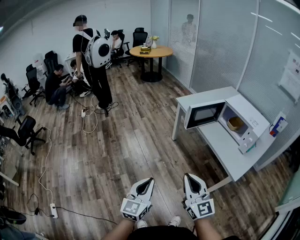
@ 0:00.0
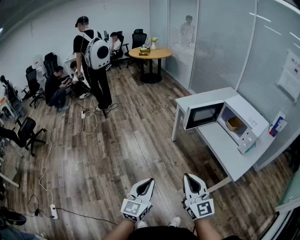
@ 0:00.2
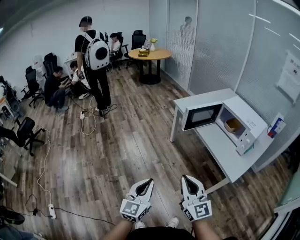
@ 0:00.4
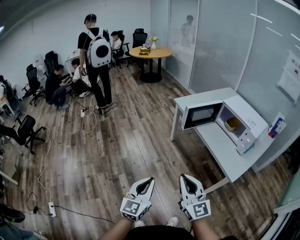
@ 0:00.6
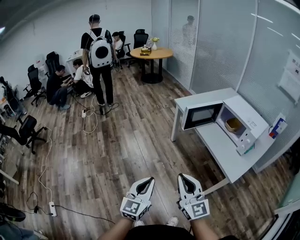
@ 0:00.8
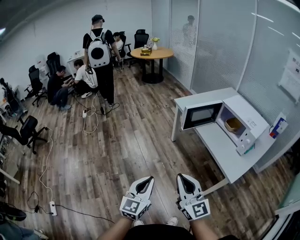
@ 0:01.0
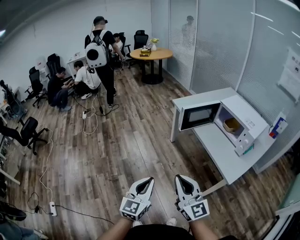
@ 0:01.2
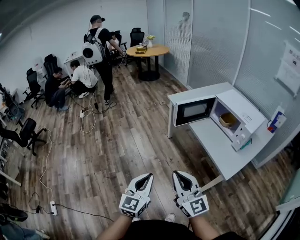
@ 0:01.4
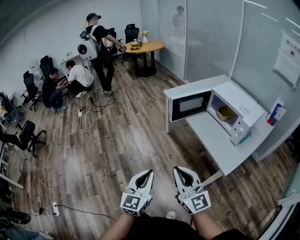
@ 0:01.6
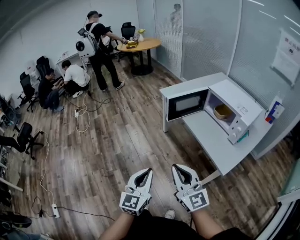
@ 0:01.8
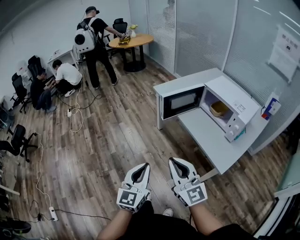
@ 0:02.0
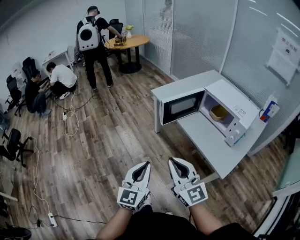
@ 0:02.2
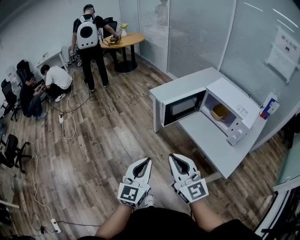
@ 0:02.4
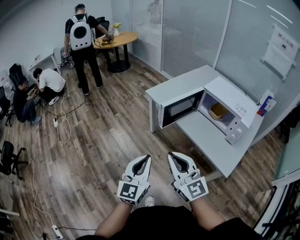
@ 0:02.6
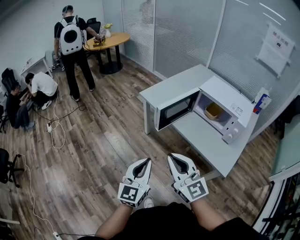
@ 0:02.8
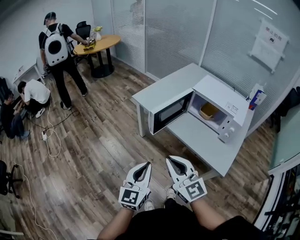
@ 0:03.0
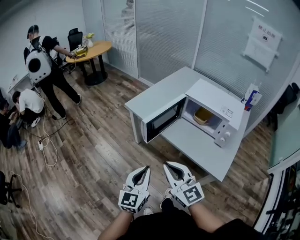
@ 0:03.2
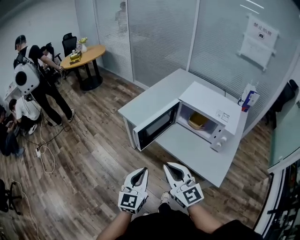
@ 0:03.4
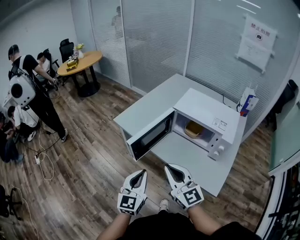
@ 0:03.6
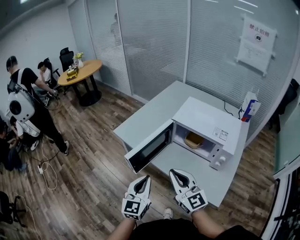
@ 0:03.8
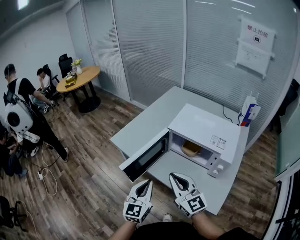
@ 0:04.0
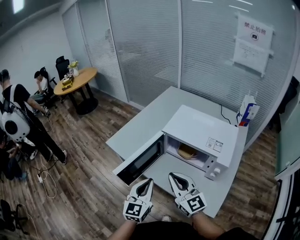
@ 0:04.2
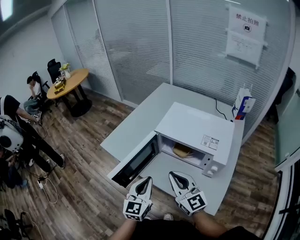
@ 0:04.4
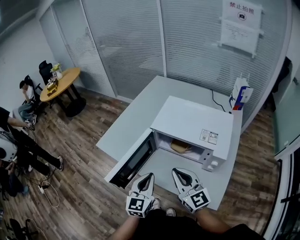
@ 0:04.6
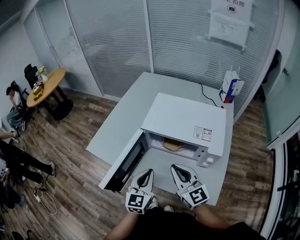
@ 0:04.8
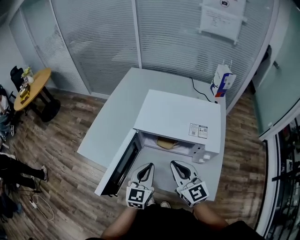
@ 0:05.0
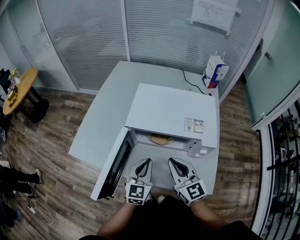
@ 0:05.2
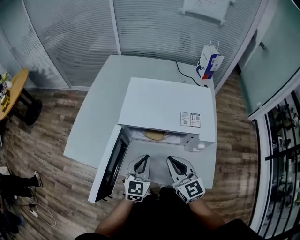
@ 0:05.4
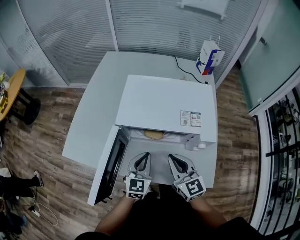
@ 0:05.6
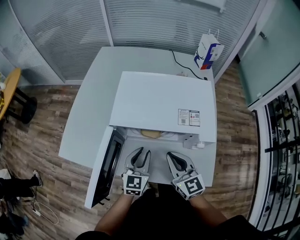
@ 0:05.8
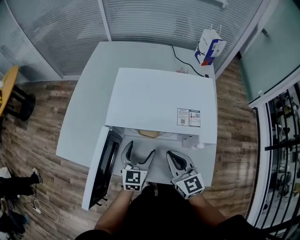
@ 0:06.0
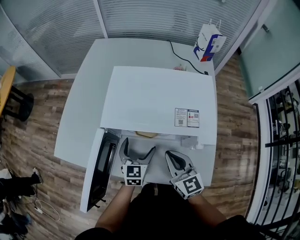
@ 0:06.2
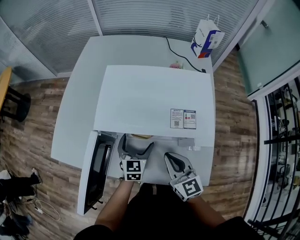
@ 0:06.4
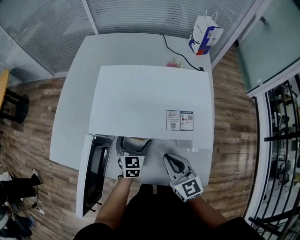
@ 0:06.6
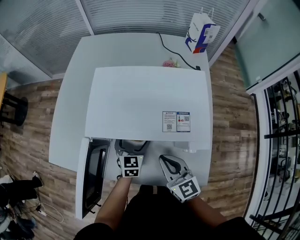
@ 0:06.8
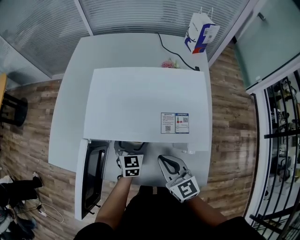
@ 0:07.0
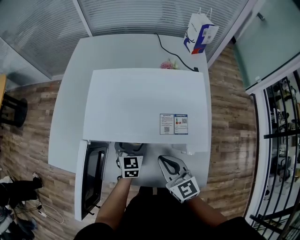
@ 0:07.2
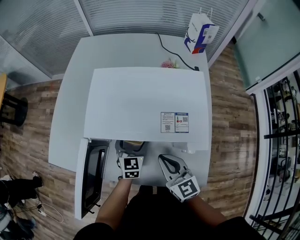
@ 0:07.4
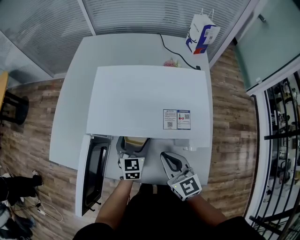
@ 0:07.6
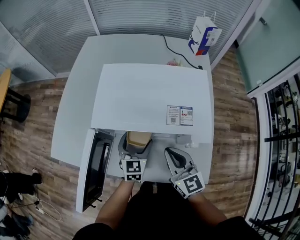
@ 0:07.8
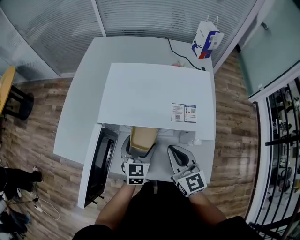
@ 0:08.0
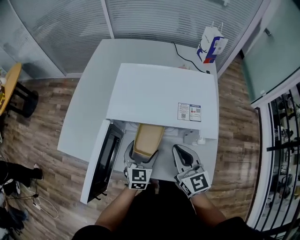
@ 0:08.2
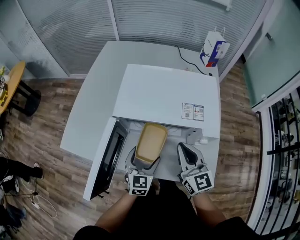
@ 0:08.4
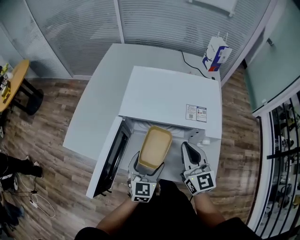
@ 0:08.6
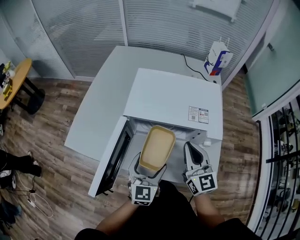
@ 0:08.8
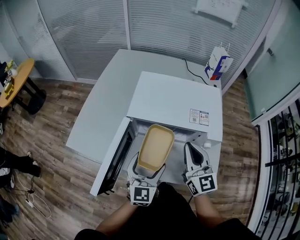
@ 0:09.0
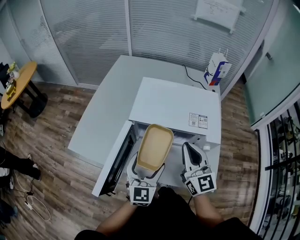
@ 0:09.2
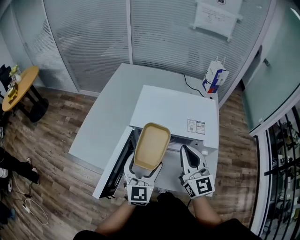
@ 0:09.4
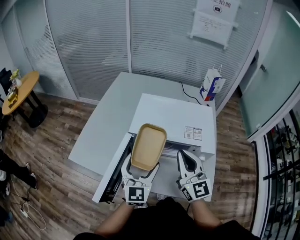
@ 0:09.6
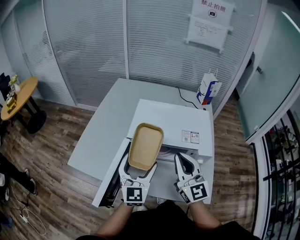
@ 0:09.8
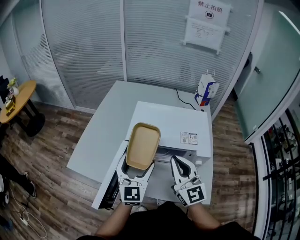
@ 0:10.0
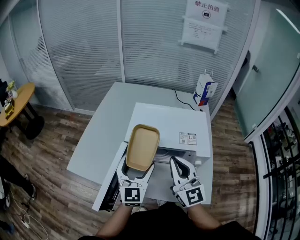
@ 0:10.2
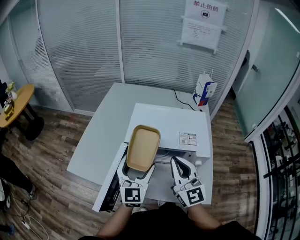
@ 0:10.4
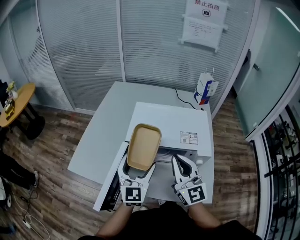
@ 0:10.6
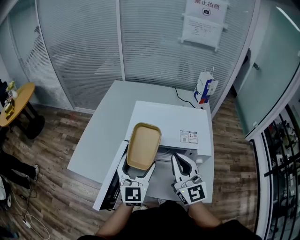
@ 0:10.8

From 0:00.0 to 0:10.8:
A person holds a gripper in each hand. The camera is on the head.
From 0:00.0 to 0:01.6: The right gripper is displaced to the right by approximately 10 cm. The left gripper travels to the right by some 10 cm.
From 0:01.6 to 0:03.0: The grippers both shift forward by approximately 20 cm.
From 0:03.0 to 0:04.6: The right gripper heads to the right and forward, covering some 35 cm, while the left gripper moves forward and to the right, some 35 cm.
From 0:04.6 to 0:06.2: The left gripper shifts roughly 25 cm forward, downward and to the right, rotates approximately 20 degrees, and opens up. Meanwhile the right gripper goes about 15 cm downward, forward and to the right, and turns by roughly 30 degrees.
From 0:07.8 to 0:09.2: The right gripper moves upward, approximately 10 cm; the left gripper moves upward, backward and to the left, roughly 20 cm.
From 0:09.2 to 0:10.8: The left gripper travels upward and forward by roughly 10 cm, while the right gripper is displaced upward by about 5 cm.

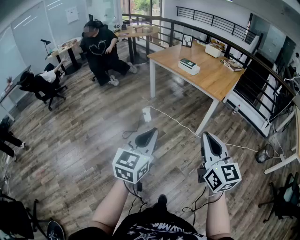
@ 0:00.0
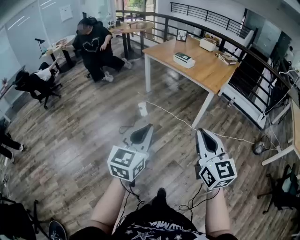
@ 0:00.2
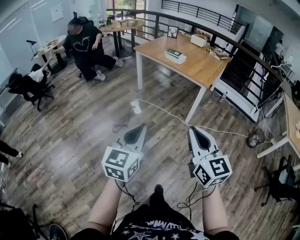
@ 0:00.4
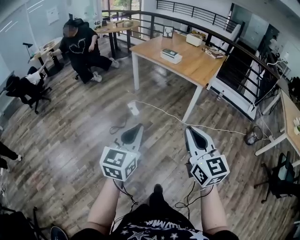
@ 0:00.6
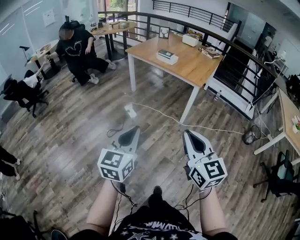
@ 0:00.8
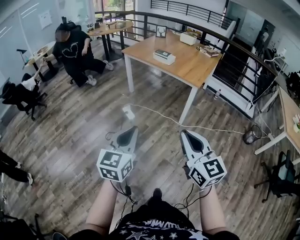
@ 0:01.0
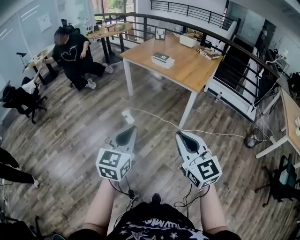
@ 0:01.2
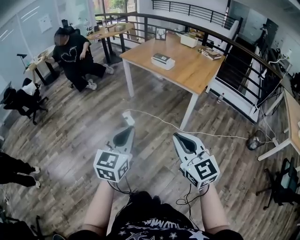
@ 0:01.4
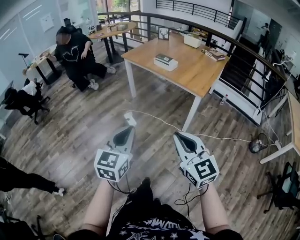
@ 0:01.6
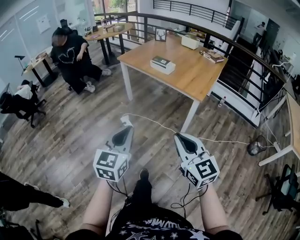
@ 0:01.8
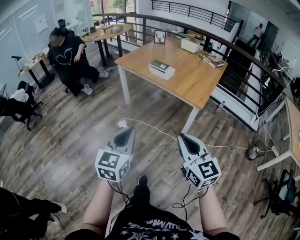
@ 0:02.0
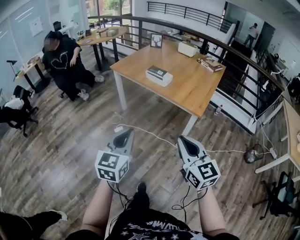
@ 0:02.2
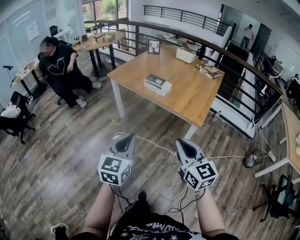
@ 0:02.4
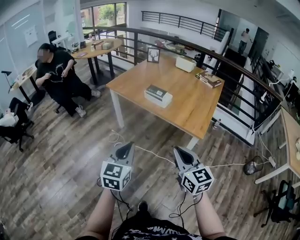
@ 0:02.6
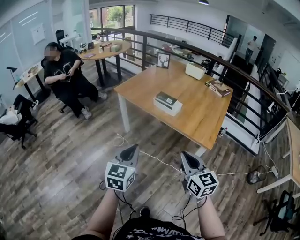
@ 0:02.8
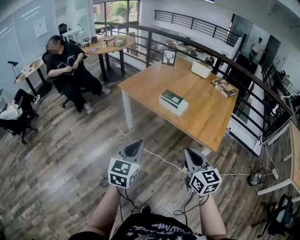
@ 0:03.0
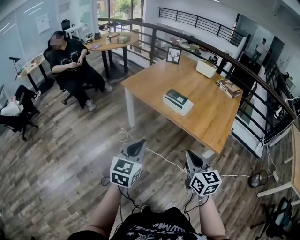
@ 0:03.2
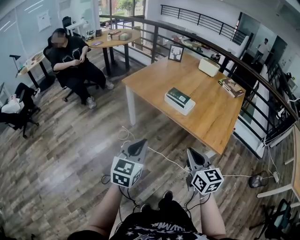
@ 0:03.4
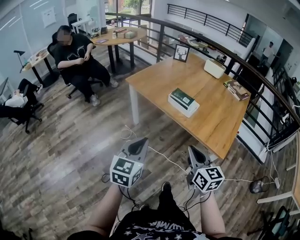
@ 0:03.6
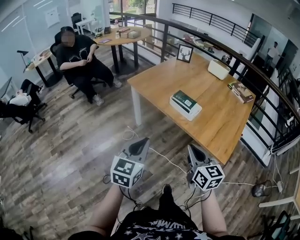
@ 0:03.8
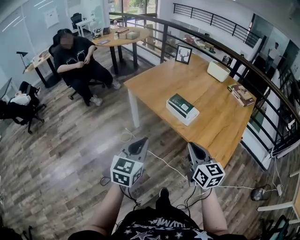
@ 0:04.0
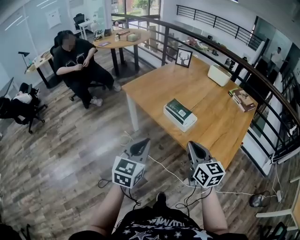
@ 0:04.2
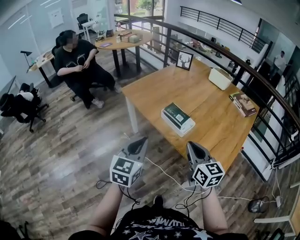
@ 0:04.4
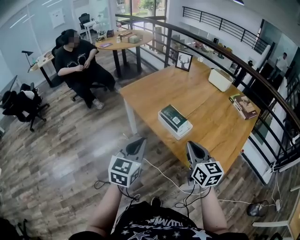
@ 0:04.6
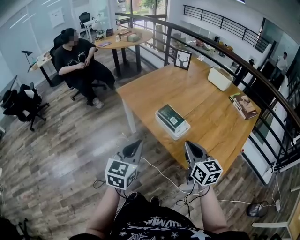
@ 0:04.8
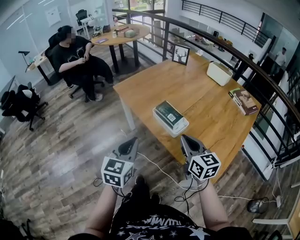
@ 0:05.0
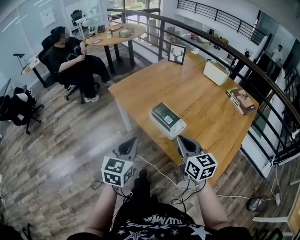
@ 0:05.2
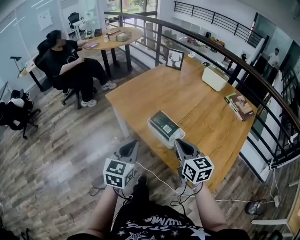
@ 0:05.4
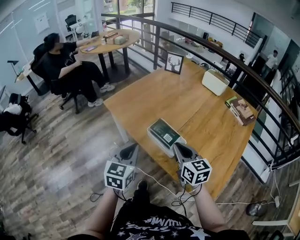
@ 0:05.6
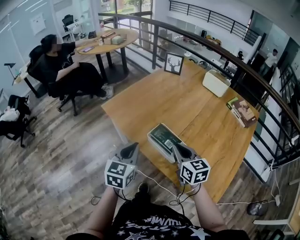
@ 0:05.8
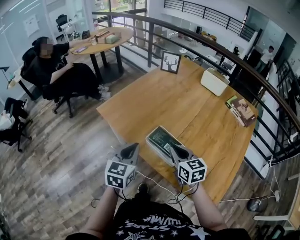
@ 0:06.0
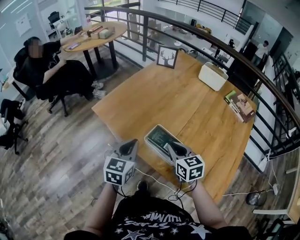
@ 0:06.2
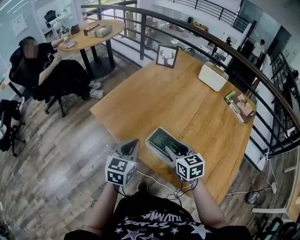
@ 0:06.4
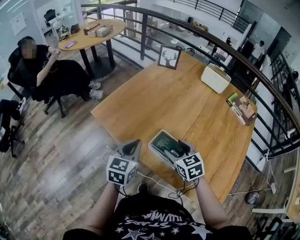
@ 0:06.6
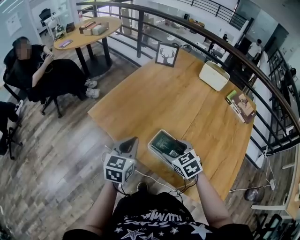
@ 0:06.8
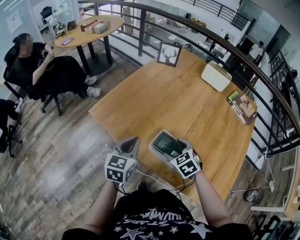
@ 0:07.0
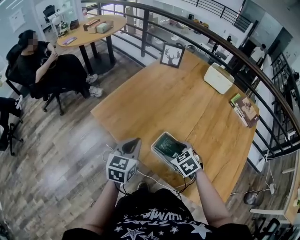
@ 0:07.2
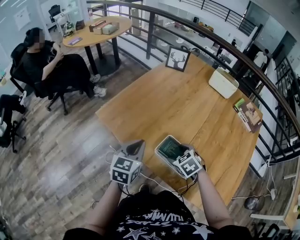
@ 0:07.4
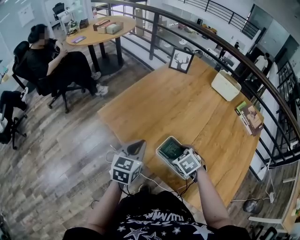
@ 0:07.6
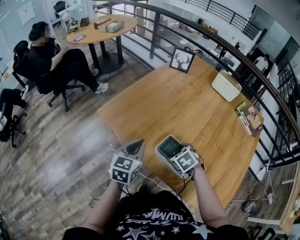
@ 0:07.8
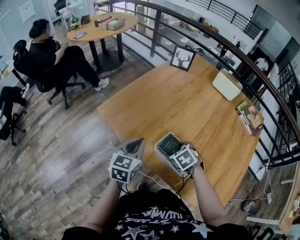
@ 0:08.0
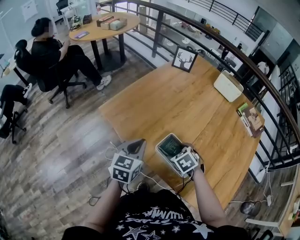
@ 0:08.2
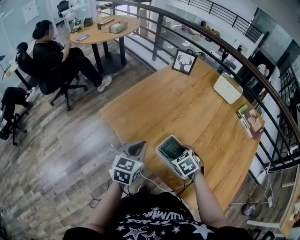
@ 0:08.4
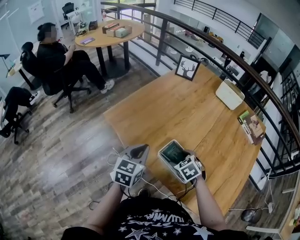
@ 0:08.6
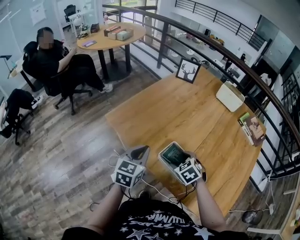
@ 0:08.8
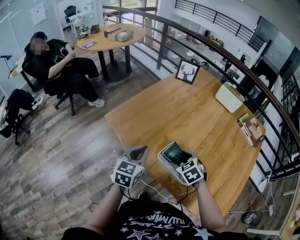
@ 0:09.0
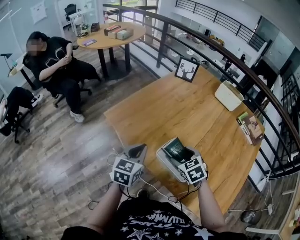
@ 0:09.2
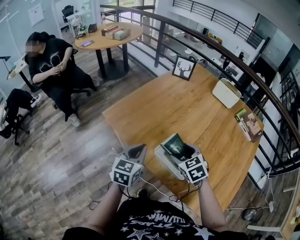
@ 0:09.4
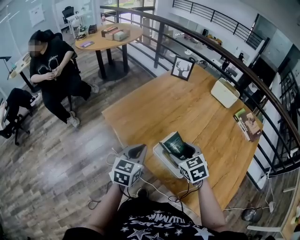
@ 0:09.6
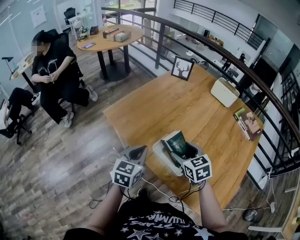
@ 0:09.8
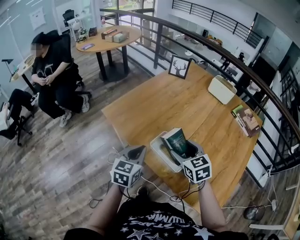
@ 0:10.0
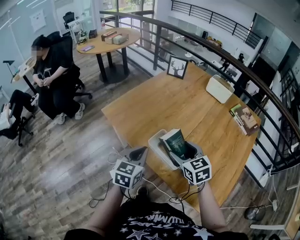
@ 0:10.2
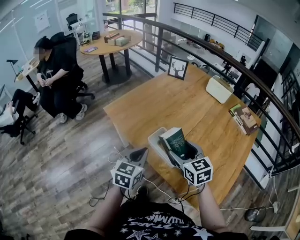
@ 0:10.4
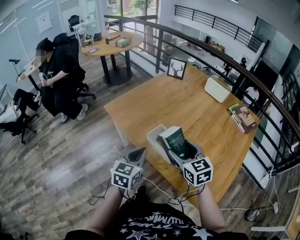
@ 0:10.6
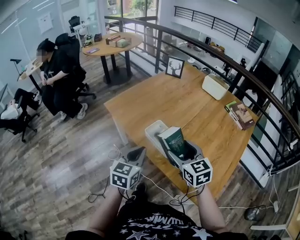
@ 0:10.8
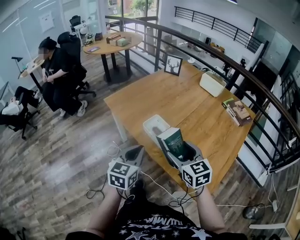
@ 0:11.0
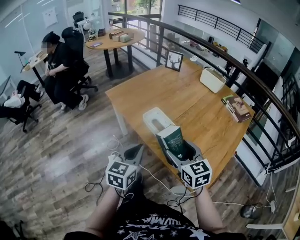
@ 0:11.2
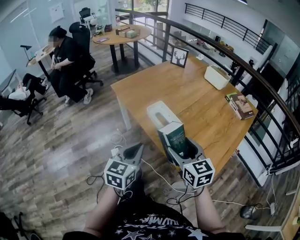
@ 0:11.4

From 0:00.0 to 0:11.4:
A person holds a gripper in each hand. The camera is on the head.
From 0:00.0 to 0:01.4: The two grippers go some 10 cm forward.
From 0:01.4 to 0:02.8: Both grippers are carried forward, about 40 cm.
From 0:02.8 to 0:04.2: Both grippers move forward, approximately 25 cm.
From 0:04.2 to 0:05.6: The grippers both shift forward by about 20 cm.
From 0:05.6 to 0:07.2: The right gripper shifts approximately 20 cm forward and downward, tips its fingers downward by approximately 40 degrees, and opens. Meanwhile the left gripper travels forward by roughly 20 cm.
From 0:07.2 to 0:08.6: The grippers make only small movements.
From 0:08.6 to 0:10.0: The right gripper goes approximately 10 cm upward, and changes its angle by approximately 30 degrees; the left gripper goes approximately 5 cm backward.
From 0:10.0 to 0:11.4: Both grippers move backward, roughly 30 cm.

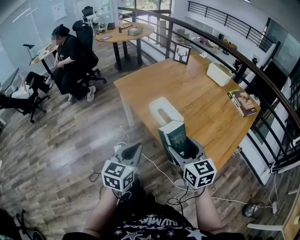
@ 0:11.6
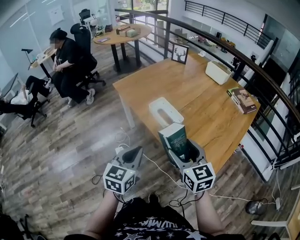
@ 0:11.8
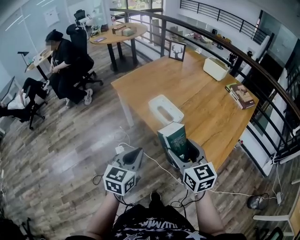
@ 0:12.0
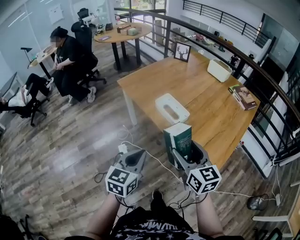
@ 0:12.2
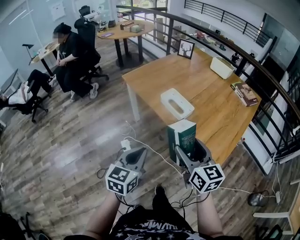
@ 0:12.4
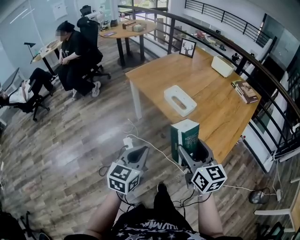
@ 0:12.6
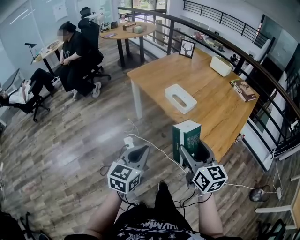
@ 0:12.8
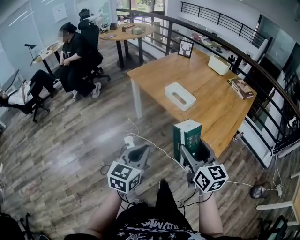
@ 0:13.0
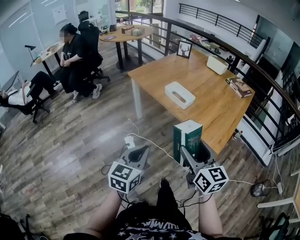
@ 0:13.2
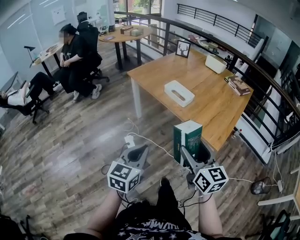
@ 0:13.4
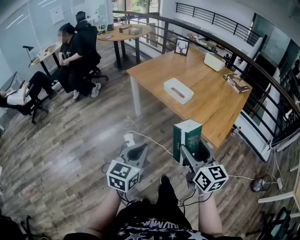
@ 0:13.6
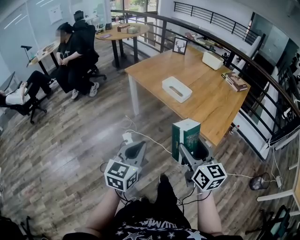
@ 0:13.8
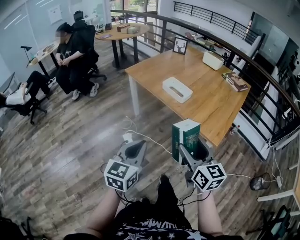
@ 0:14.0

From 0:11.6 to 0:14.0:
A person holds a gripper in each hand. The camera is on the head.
From 0:11.6 to 0:12.8: Both grippers move backward and to the left, approximately 20 cm.
From 0:12.8 to 0:14.0: Both grippers move backward, roughly 10 cm.
